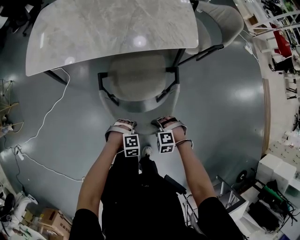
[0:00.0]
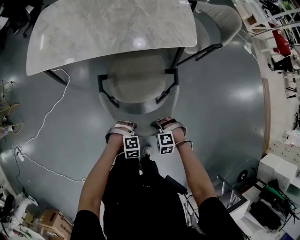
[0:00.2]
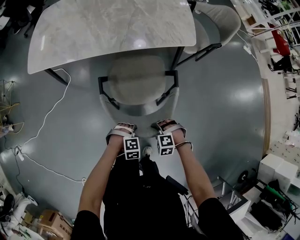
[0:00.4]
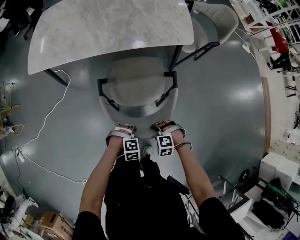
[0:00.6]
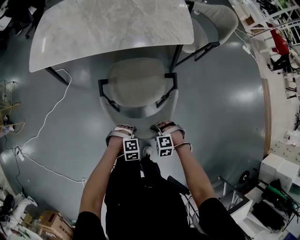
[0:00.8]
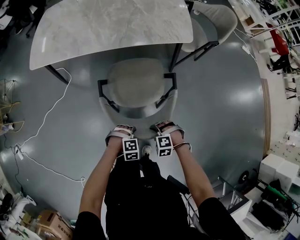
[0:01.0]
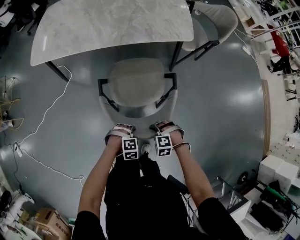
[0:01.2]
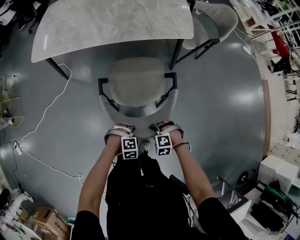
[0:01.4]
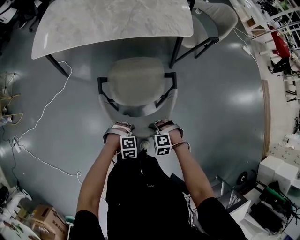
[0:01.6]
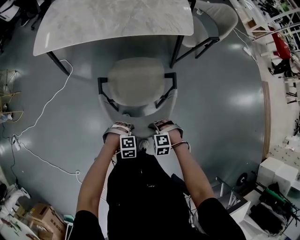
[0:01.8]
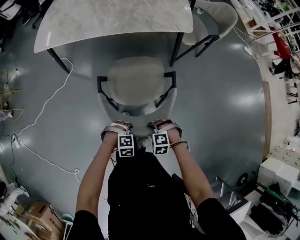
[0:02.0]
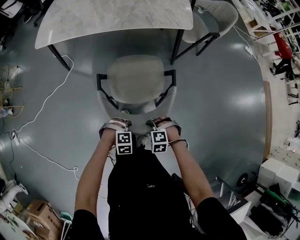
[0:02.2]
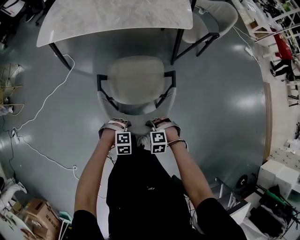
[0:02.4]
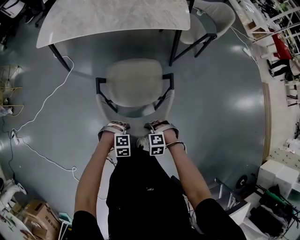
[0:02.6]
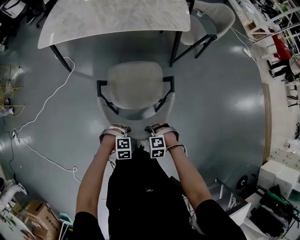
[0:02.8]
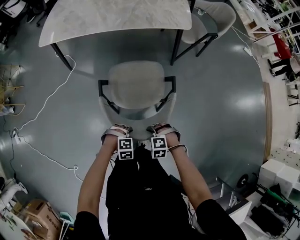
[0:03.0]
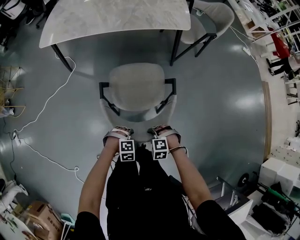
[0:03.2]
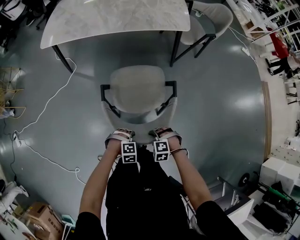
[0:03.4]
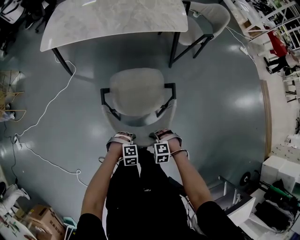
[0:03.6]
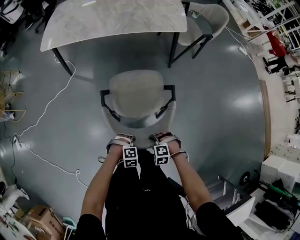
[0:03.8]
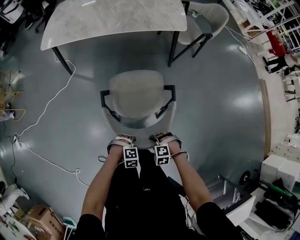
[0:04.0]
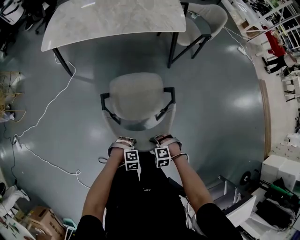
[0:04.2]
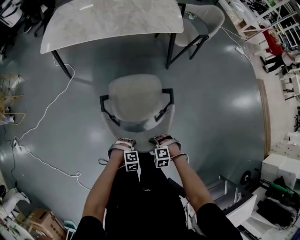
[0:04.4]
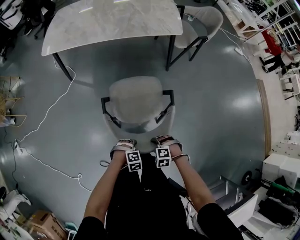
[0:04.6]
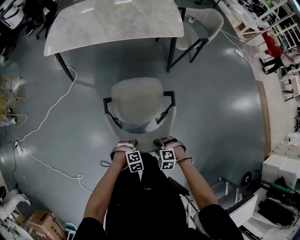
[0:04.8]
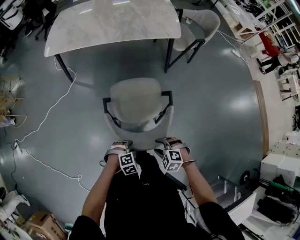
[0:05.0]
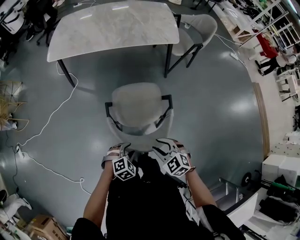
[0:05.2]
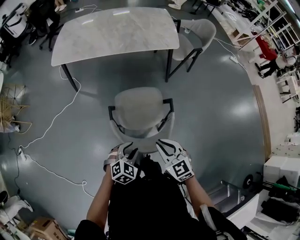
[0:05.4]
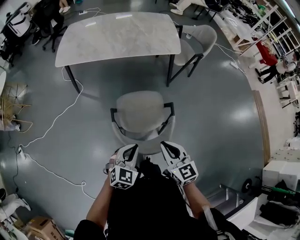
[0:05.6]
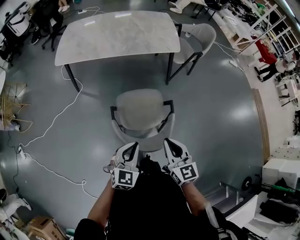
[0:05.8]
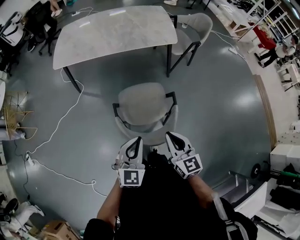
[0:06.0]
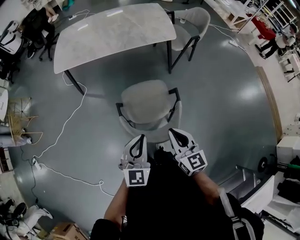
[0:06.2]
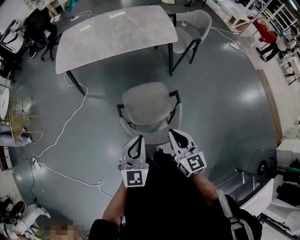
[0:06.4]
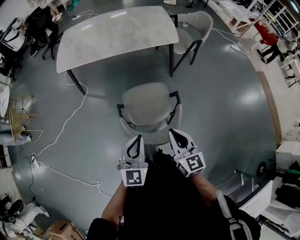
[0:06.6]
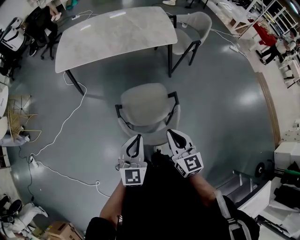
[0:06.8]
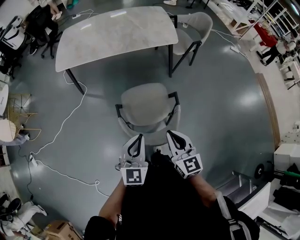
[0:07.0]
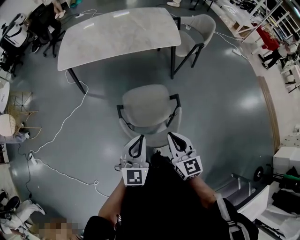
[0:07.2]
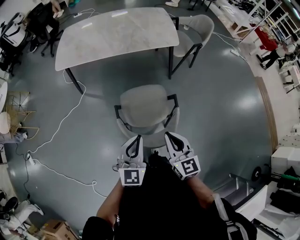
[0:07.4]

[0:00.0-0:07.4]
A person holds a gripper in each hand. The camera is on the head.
0:00.0 to 0:01.4: The right gripper shifts by some 10 cm, while the left gripper shifts by approximately 10 cm.
0:01.4 to 0:03.0: The left gripper ends up about 10 cm from where it was. Meanwhile the right gripper ends up roughly 10 cm from where it was.
0:03.0 to 0:04.4: The left gripper ends up some 10 cm from where it was; the right gripper ends up about 10 cm from where it was.
0:04.4 to 0:06.0: Both grippers move upward, about 40 cm. The right gripper tilts its fingers about 60 degrees upward, and closes its fingers. The left gripper points its fingers some 60 degrees further upward, and opens, then closes once more.
0:06.0 to 0:07.4: The grippers make only small movements.

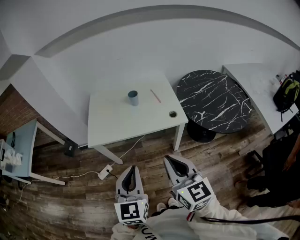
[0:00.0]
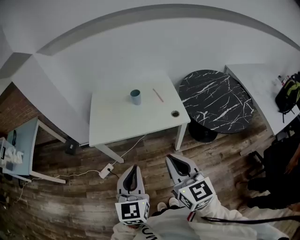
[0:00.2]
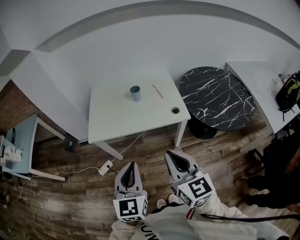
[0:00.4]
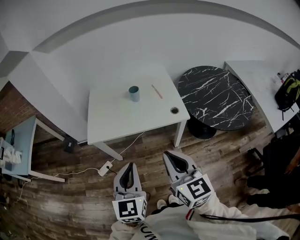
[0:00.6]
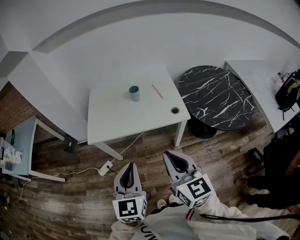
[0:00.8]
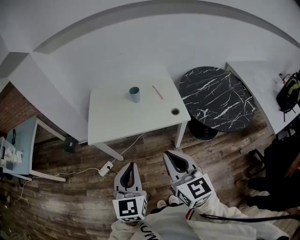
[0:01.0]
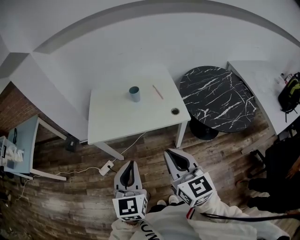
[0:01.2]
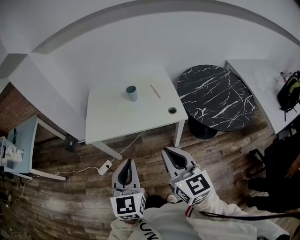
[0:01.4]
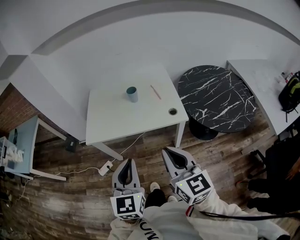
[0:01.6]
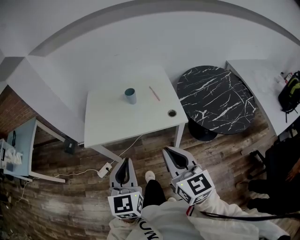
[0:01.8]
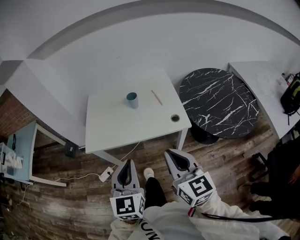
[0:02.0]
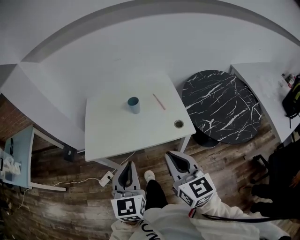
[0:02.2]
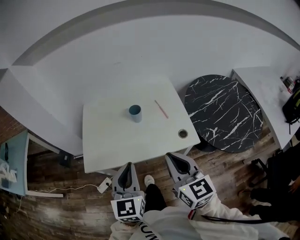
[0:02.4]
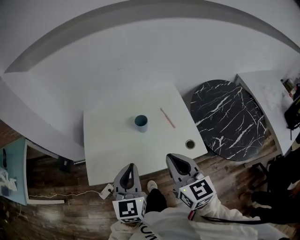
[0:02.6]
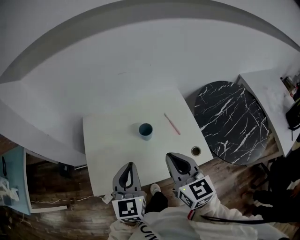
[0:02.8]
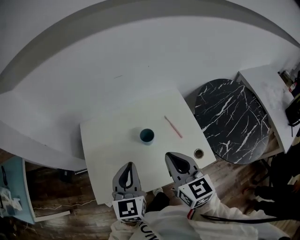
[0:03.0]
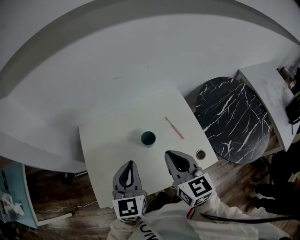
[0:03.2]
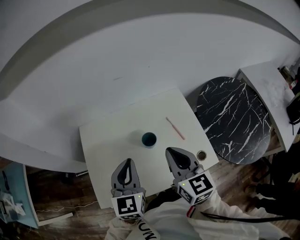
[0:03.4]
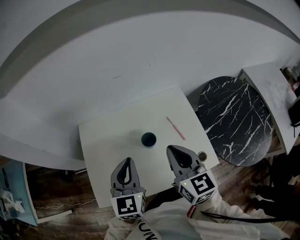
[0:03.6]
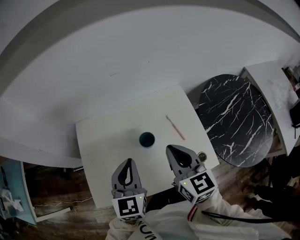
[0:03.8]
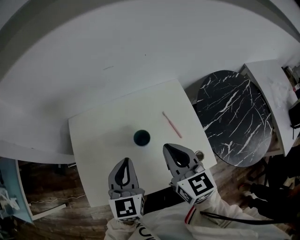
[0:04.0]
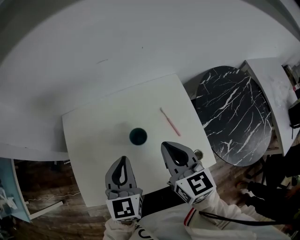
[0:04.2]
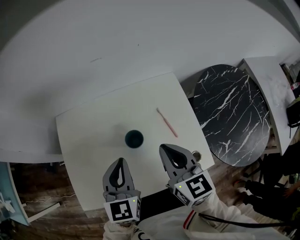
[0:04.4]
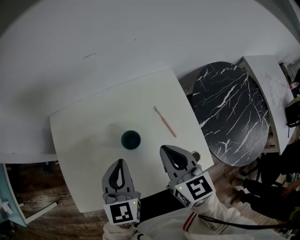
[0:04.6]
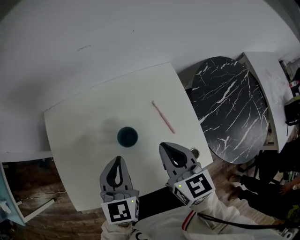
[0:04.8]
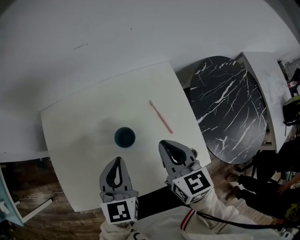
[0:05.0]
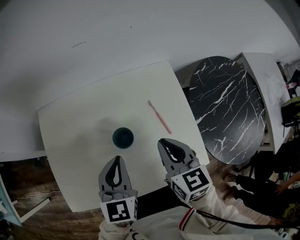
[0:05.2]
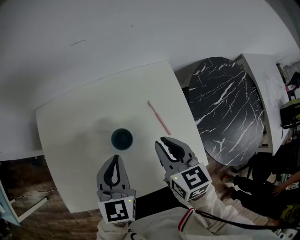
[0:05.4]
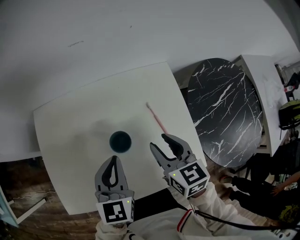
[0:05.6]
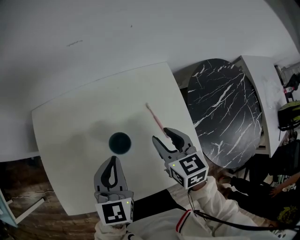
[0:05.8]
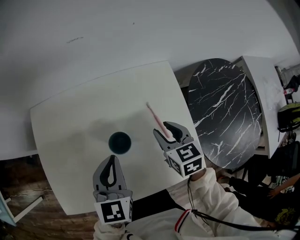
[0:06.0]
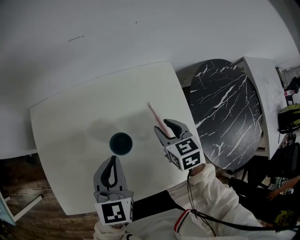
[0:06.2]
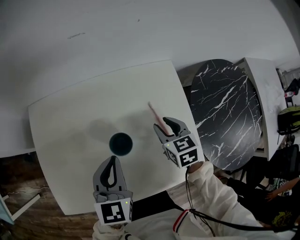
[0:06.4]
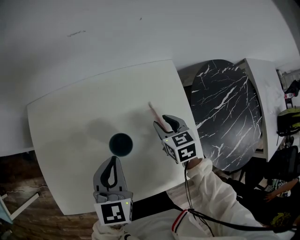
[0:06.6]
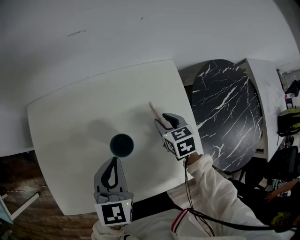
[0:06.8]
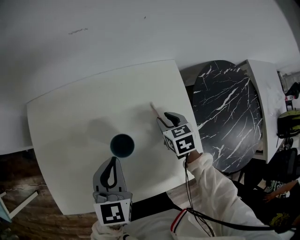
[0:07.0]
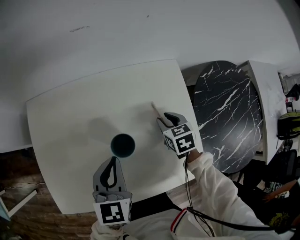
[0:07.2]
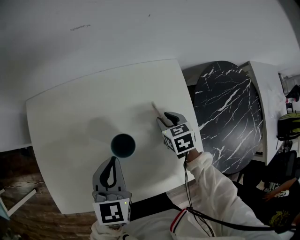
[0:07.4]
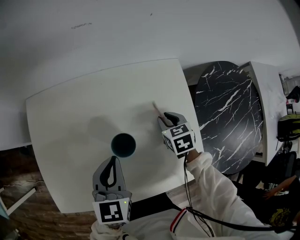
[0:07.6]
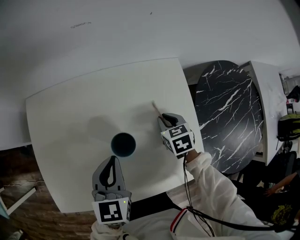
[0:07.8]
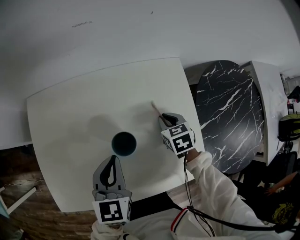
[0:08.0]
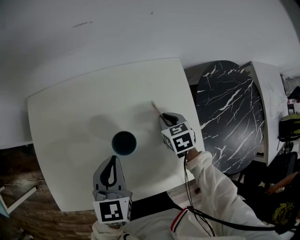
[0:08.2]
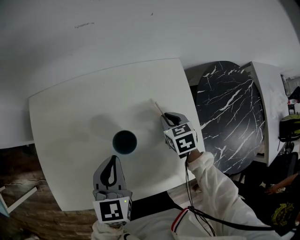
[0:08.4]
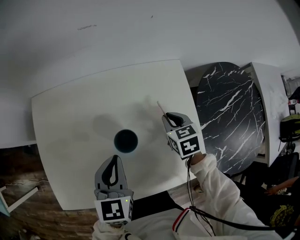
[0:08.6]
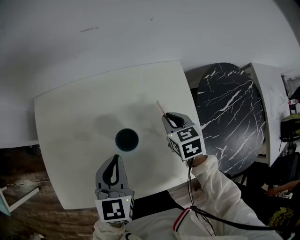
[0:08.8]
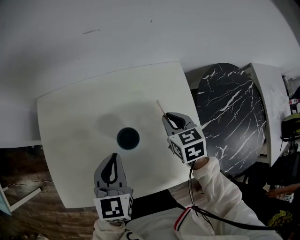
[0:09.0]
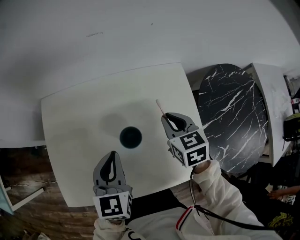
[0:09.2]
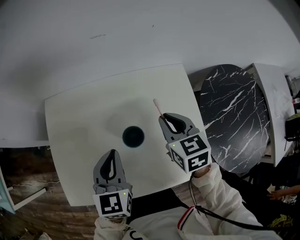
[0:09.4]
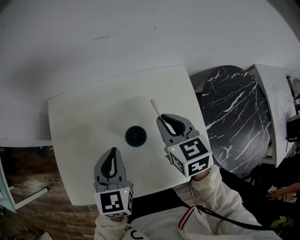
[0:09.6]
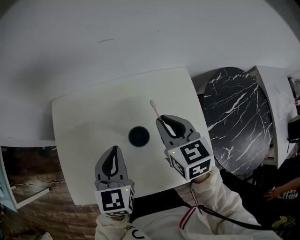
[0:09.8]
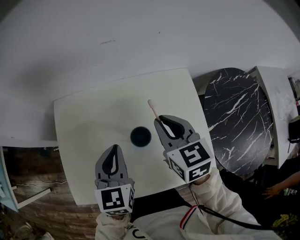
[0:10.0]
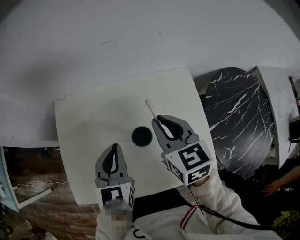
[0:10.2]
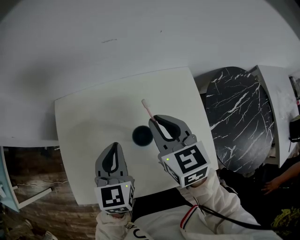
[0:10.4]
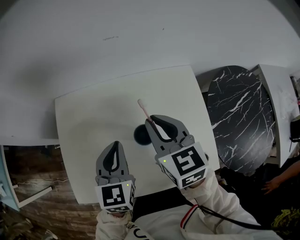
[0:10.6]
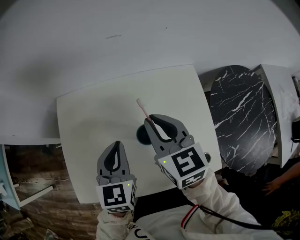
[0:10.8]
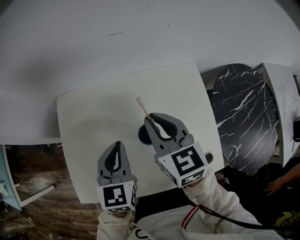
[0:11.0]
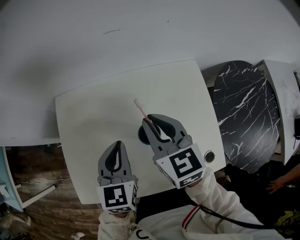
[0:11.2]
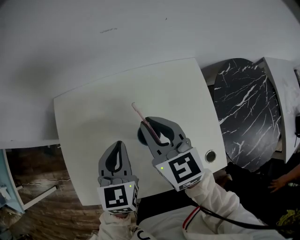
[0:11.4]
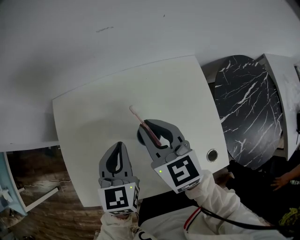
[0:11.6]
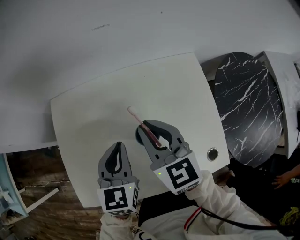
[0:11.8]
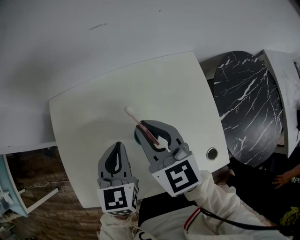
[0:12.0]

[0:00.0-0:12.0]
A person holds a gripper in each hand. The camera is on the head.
0:00.0 to 0:01.6: The right gripper shifts by approximately 5 cm.
0:01.6 to 0:03.0: Both grippers are carried forward, approximately 40 cm.
0:03.0 to 0:04.4: Both grippers move forward and downward, approximately 10 cm.
0:04.4 to 0:06.0: The left gripper travels downward by some 5 cm. Meanwhile the right gripper moves downward, forward and to the right, some 20 cm, rotates some 20 degrees, and opens up.
0:06.0 to 0:07.6: The right gripper is displaced downward and forward by roughly 10 cm.
0:07.6 to 0:09.0: The right gripper travels upward by approximately 10 cm.
0:09.0 to 0:10.4: The right gripper travels upward and to the left by about 20 cm, and changes its angle by approximately 20 degrees; the left gripper ends up roughly 5 cm from where it was.
0:10.4 to 0:12.0: The right gripper moves to the left, about 5 cm.

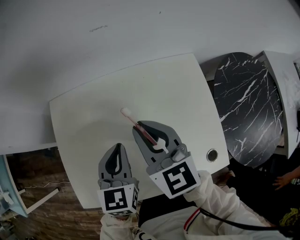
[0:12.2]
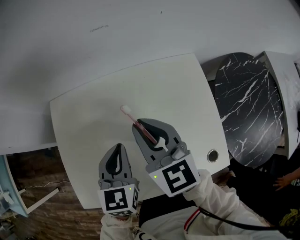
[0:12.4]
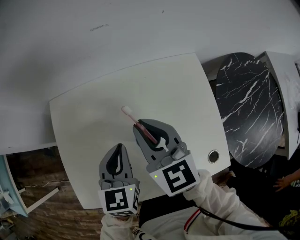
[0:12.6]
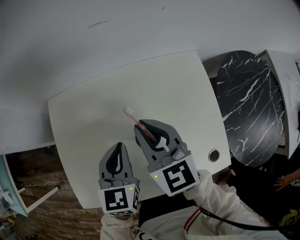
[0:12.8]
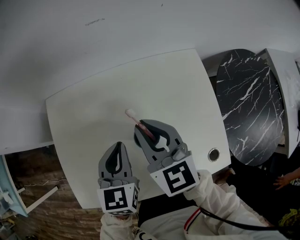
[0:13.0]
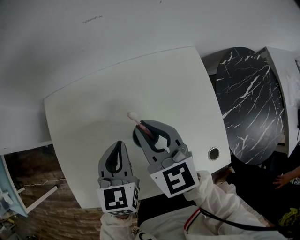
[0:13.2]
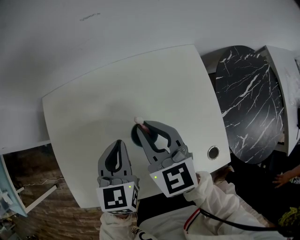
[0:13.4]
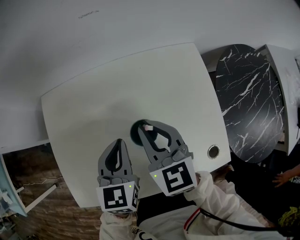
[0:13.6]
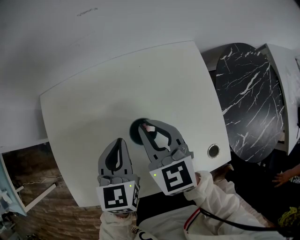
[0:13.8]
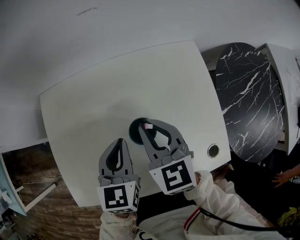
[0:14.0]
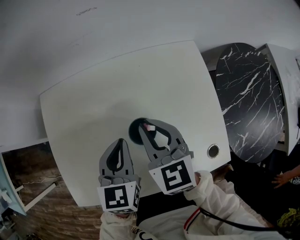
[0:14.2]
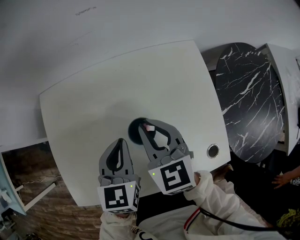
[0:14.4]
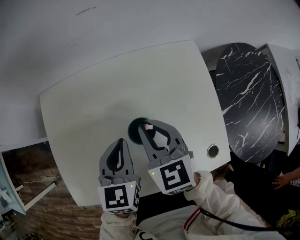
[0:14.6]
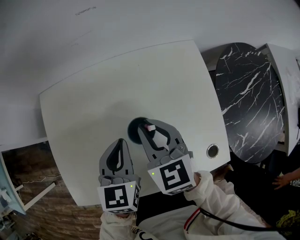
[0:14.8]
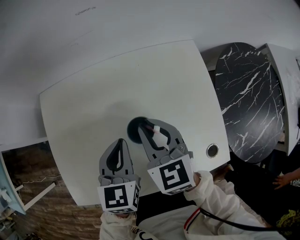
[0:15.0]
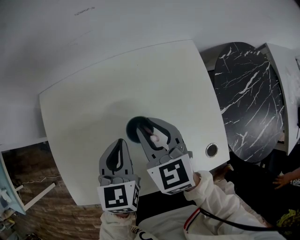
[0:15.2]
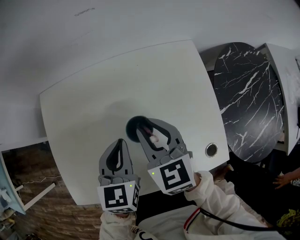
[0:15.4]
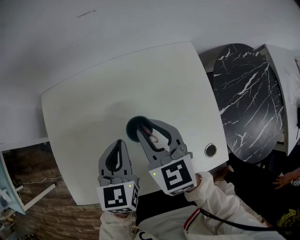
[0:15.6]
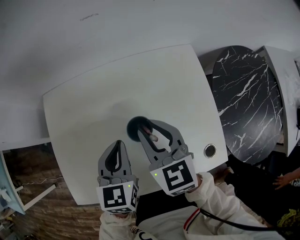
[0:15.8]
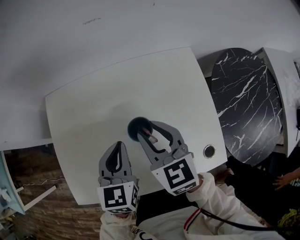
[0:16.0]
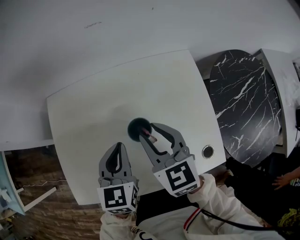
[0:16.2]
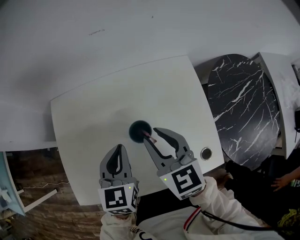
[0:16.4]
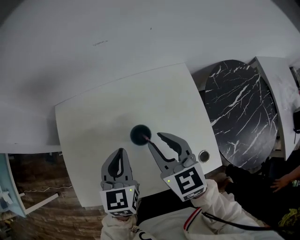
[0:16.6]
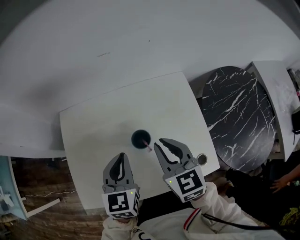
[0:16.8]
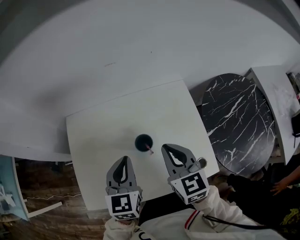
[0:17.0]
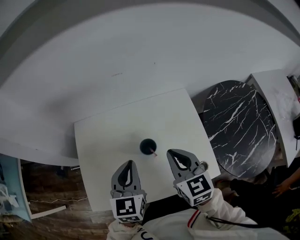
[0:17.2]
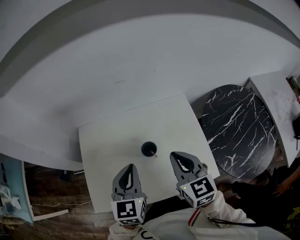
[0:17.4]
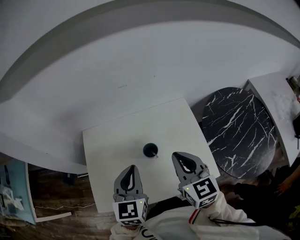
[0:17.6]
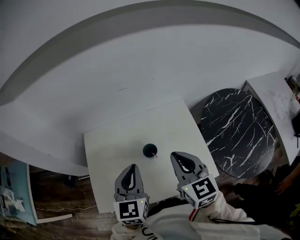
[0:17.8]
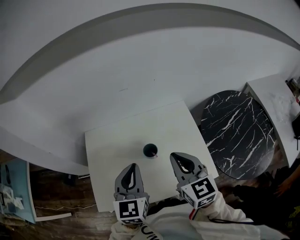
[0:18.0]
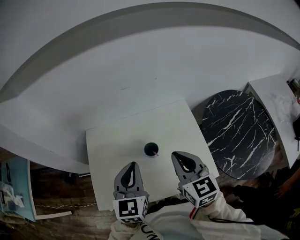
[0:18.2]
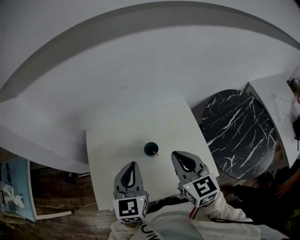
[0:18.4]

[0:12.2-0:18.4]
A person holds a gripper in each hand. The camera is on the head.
0:12.2 to 0:13.8: The right gripper is displaced downward by roughly 5 cm.
0:13.8 to 0:15.4: The grippers stay close to where they were, moving slightly.
0:15.4 to 0:16.8: Both grippers travel together upward, approximately 10 cm.
0:16.8 to 0:18.4: The left gripper heads upward, covering approximately 15 cm; the right gripper shifts approximately 15 cm upward and backward.
